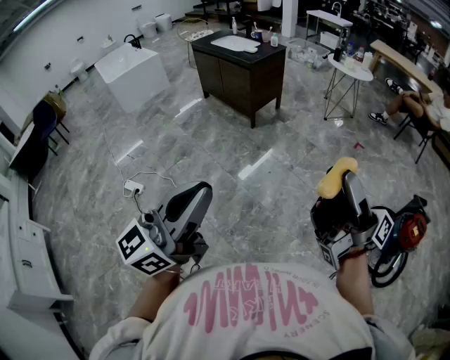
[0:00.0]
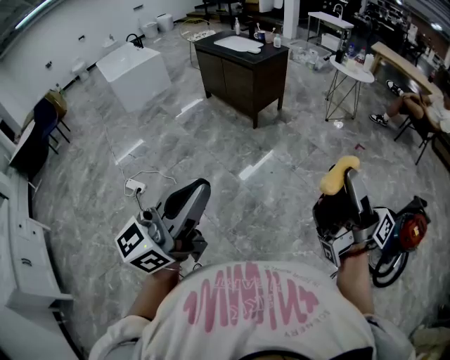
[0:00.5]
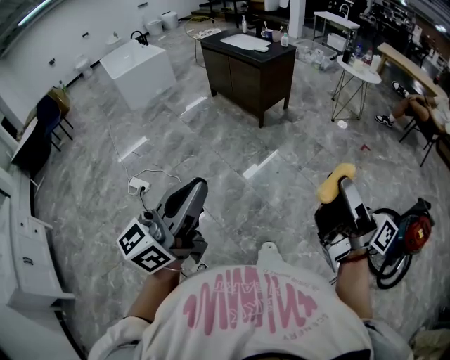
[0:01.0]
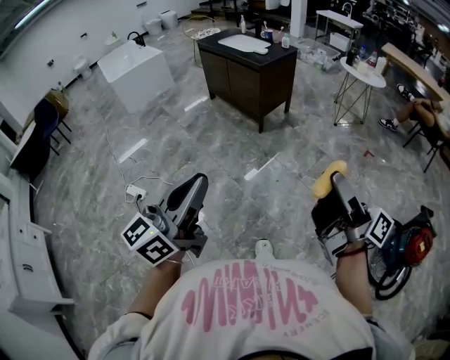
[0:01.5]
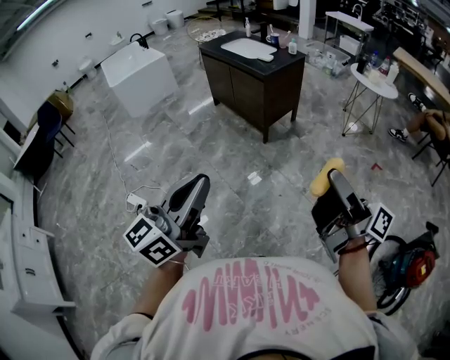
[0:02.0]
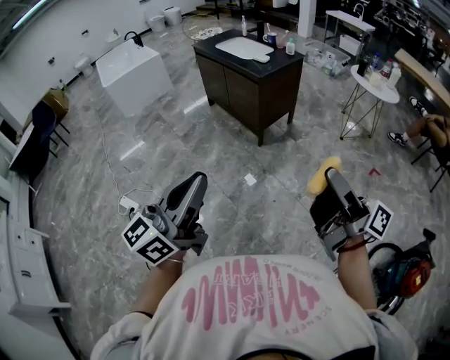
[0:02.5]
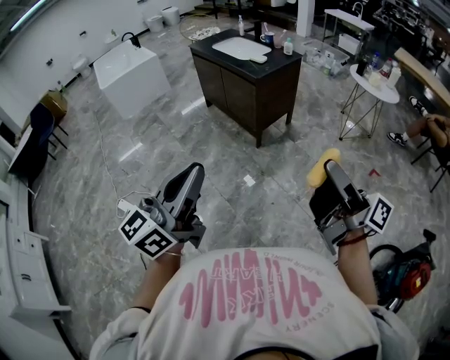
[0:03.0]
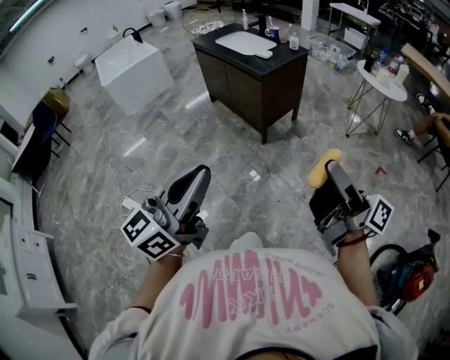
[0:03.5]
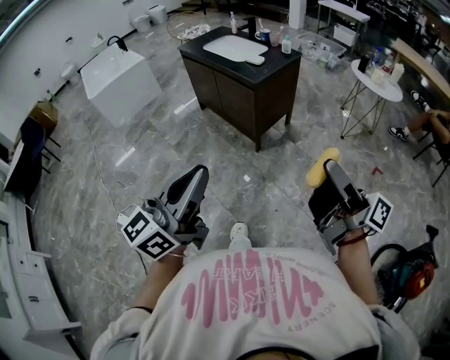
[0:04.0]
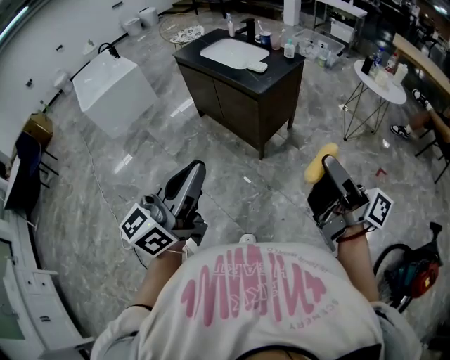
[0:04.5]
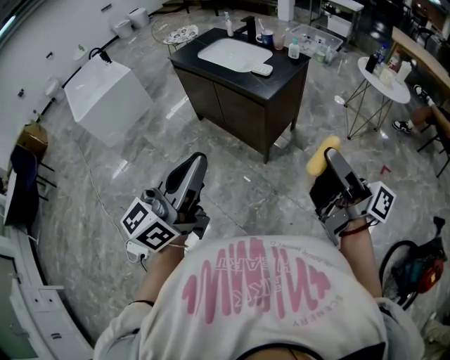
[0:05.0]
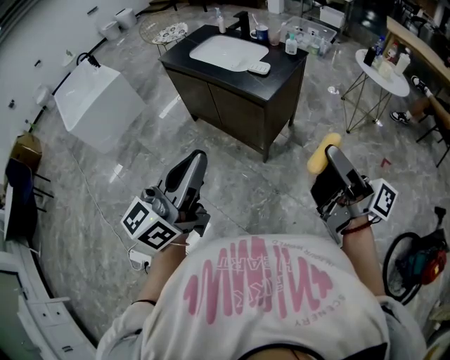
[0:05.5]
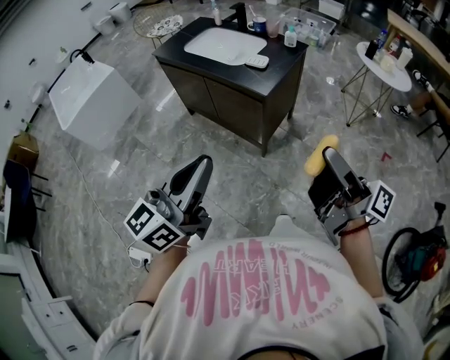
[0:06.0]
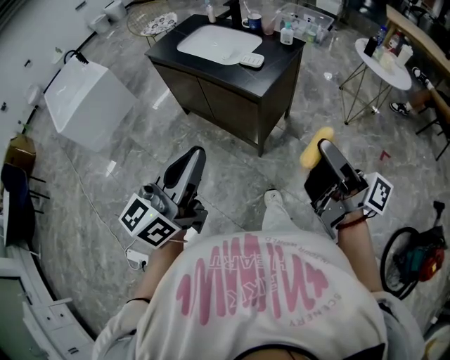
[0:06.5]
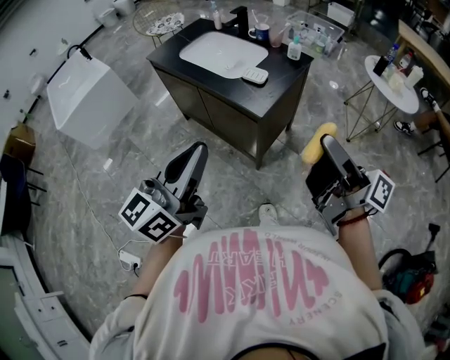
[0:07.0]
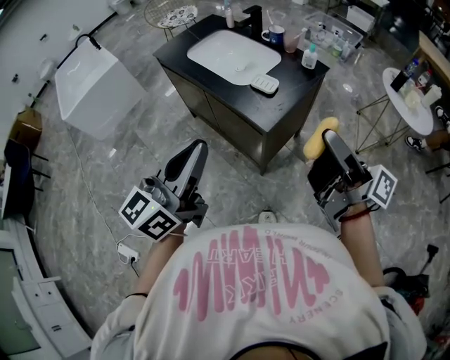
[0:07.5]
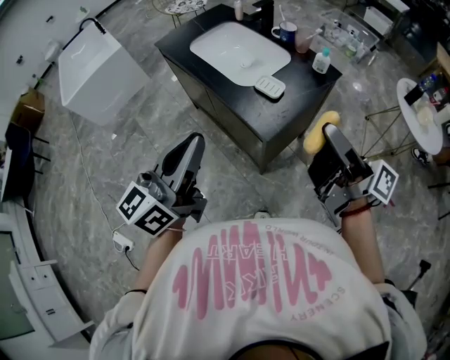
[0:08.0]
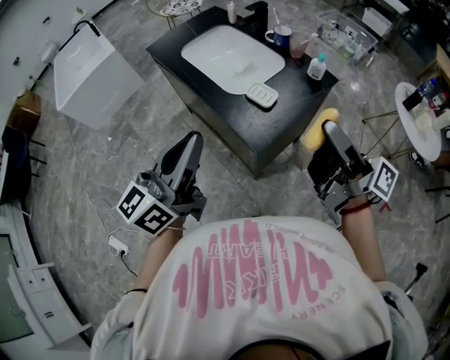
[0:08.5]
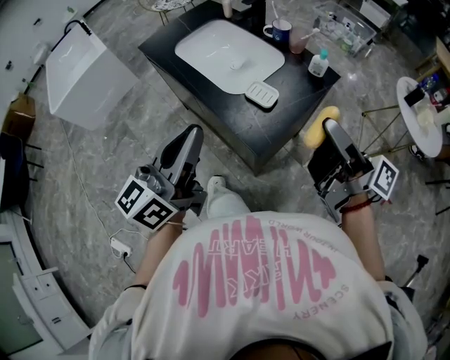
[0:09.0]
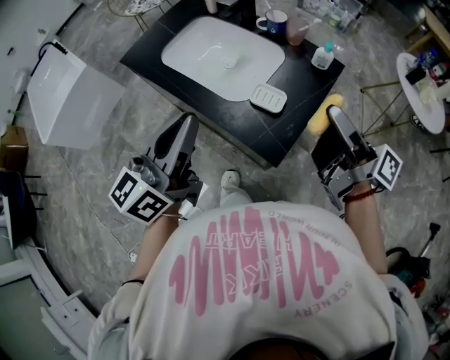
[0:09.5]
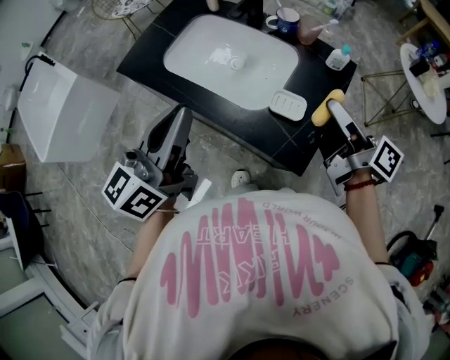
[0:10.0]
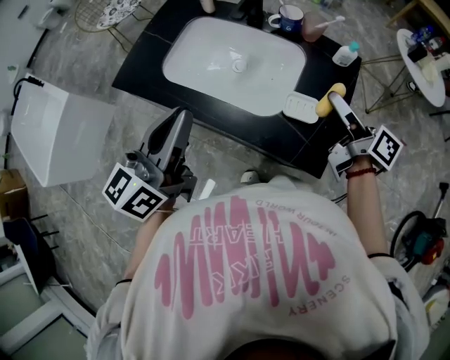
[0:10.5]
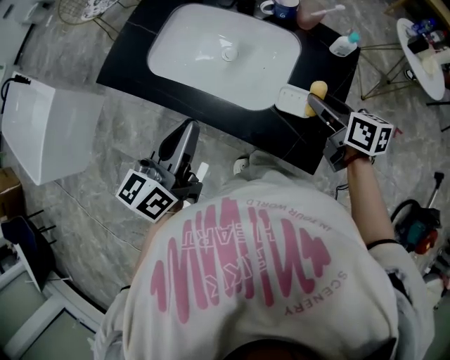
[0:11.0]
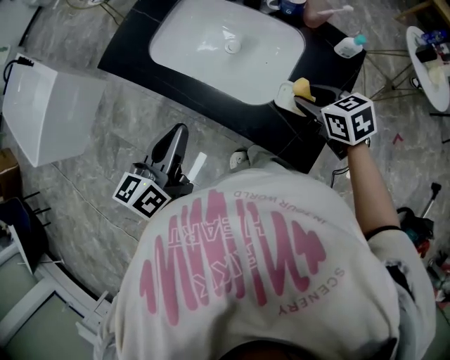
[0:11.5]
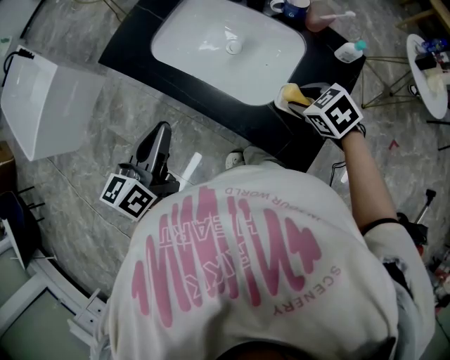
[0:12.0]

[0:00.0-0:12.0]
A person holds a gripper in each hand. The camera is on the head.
0:00.0 to 0:02.0: The grippers both shift forward by roughly 25 cm.
0:02.0 to 0:04.0: Both grippers travel together forward, some 20 cm.
0:04.0 to 0:06.0: The left gripper is displaced forward by about 25 cm. The right gripper is displaced forward and to the left by some 25 cm.
0:06.0 to 0:08.0: The grippers both shift forward by some 30 cm.
0:08.0 to 0:10.0: The left gripper heads forward, covering about 25 cm; the right gripper goes approximately 20 cm forward and downward, and swivels some 30 degrees.
0:10.0 to 0:12.0: Both grippers move downward and to the left, about 15 cm. The left gripper rotates some 20 degrees. Meanwhile the right gripper tilts its fingers about 60 degrees downward.

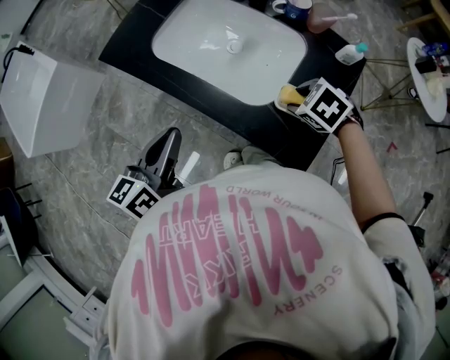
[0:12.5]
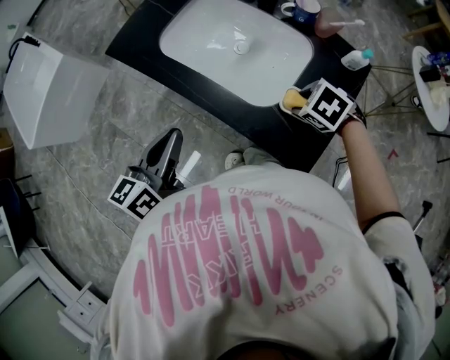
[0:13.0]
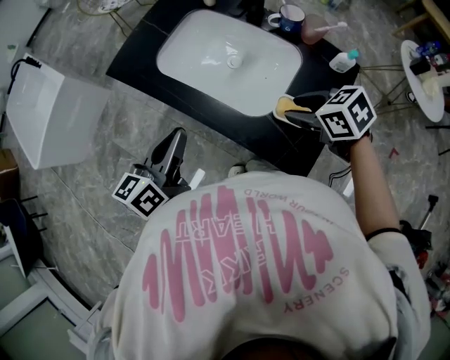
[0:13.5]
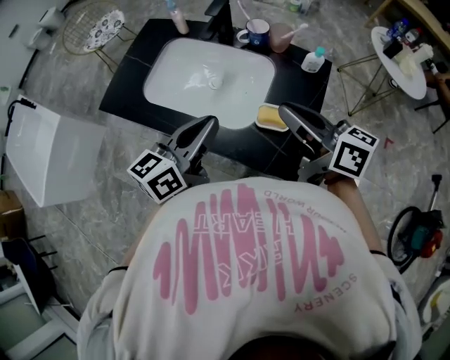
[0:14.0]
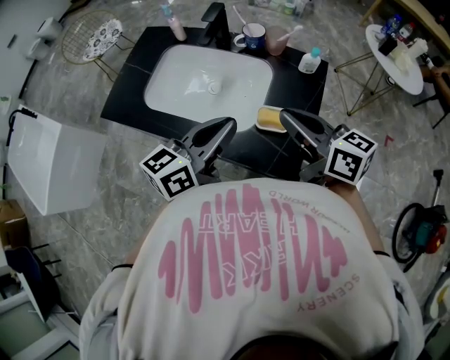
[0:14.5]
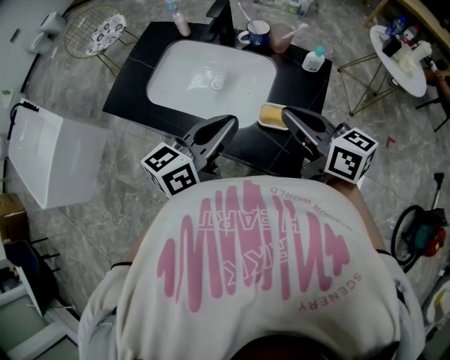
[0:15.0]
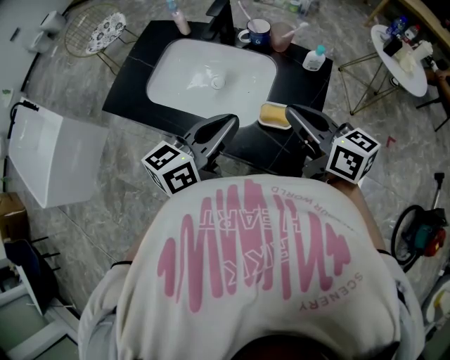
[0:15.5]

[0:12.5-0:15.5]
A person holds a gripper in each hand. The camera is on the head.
0:12.5 to 0:14.0: The left gripper shifts by roughly 15 cm, and turns by some 30 degrees; the right gripper goes roughly 20 cm upward, tips its fingers upward by about 70 degrees, and closes.
0:14.0 to 0:15.5: The grippers stay close to where they were, moving slightly.

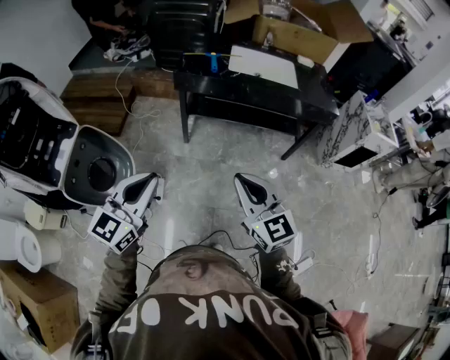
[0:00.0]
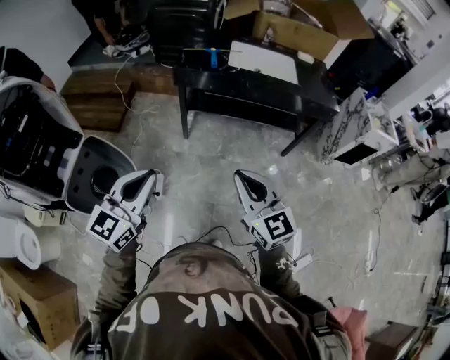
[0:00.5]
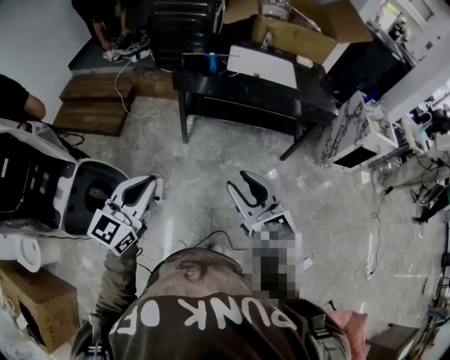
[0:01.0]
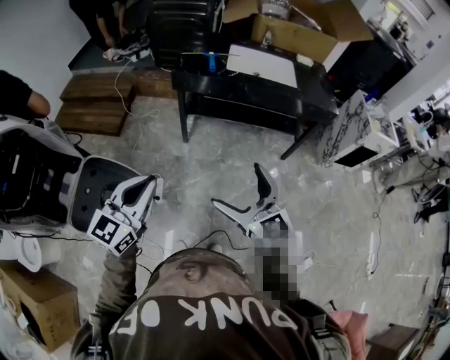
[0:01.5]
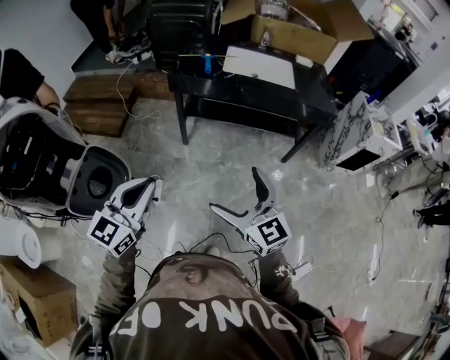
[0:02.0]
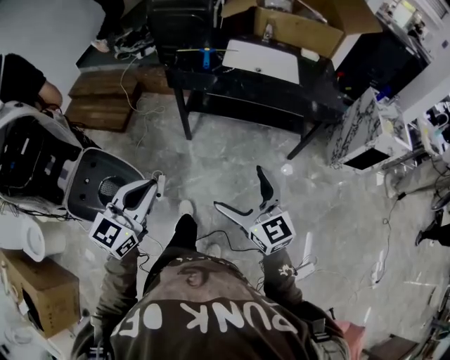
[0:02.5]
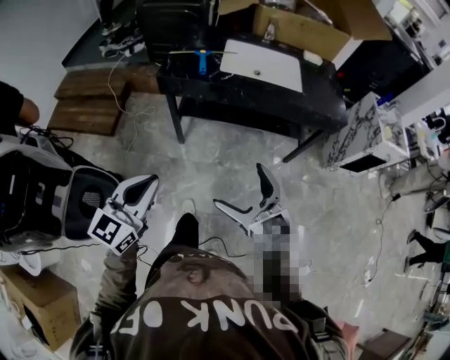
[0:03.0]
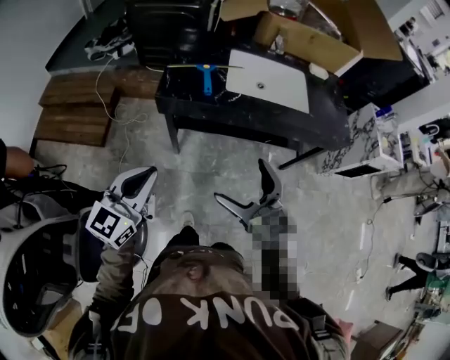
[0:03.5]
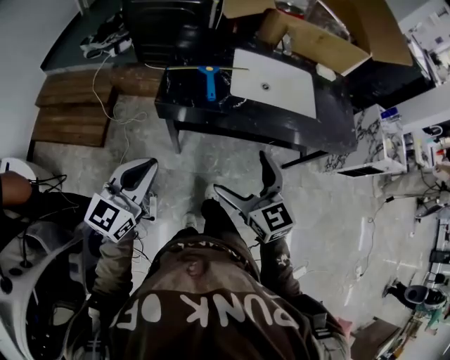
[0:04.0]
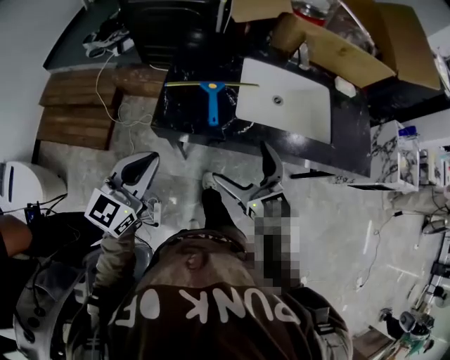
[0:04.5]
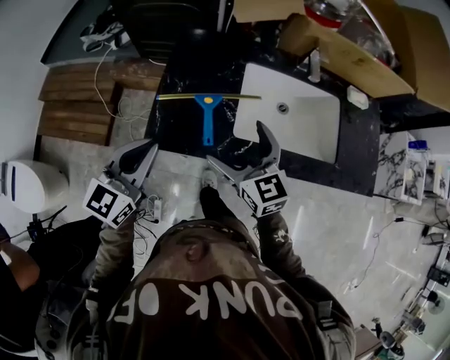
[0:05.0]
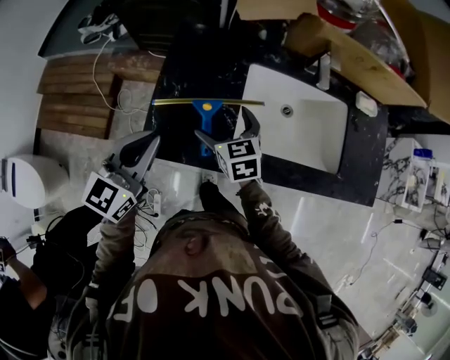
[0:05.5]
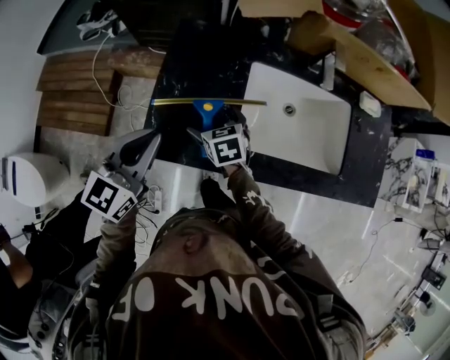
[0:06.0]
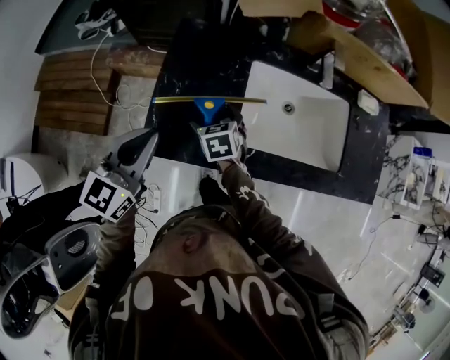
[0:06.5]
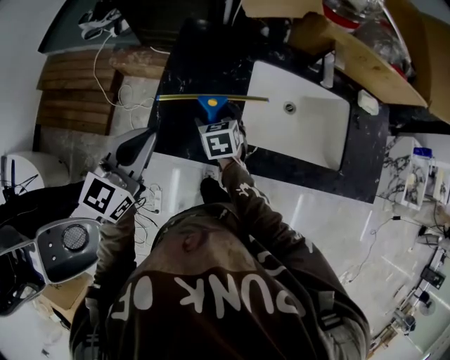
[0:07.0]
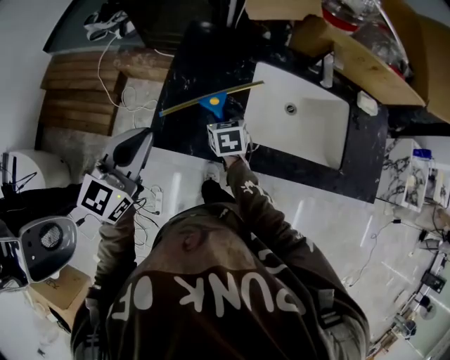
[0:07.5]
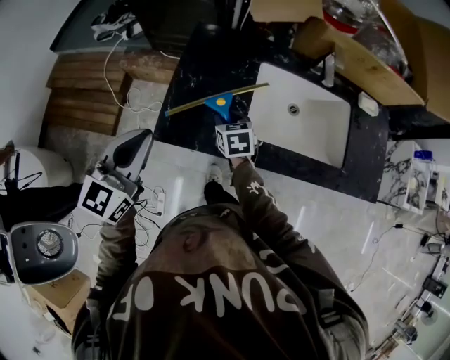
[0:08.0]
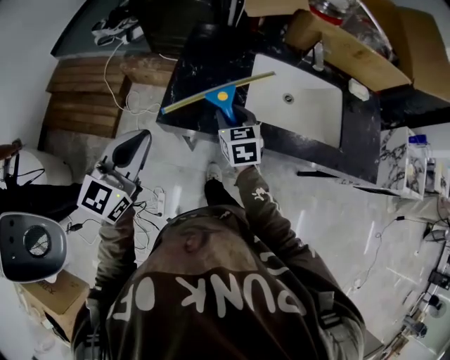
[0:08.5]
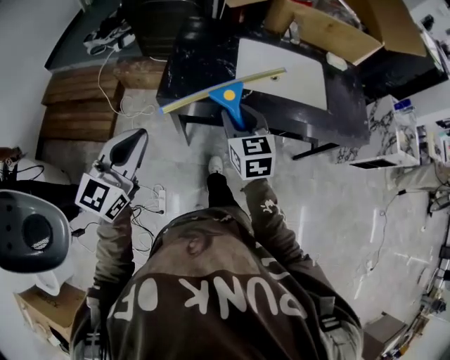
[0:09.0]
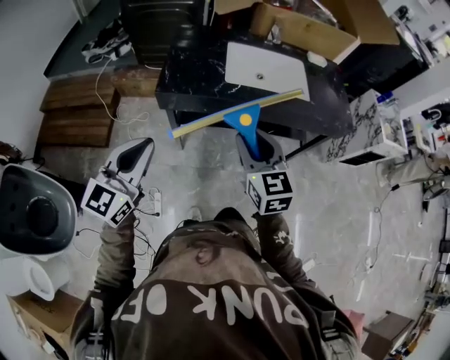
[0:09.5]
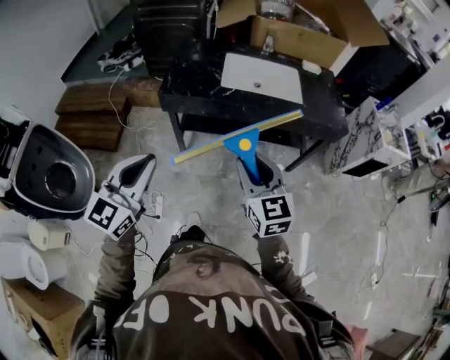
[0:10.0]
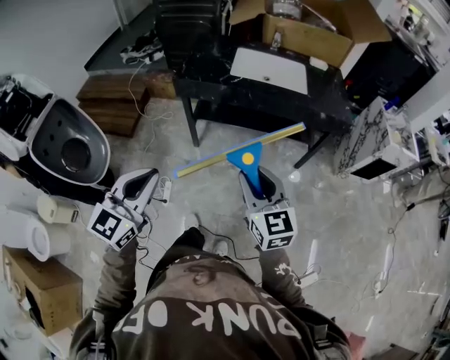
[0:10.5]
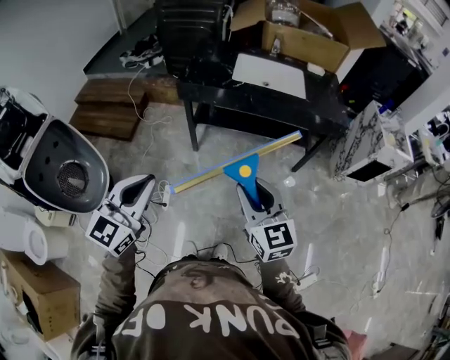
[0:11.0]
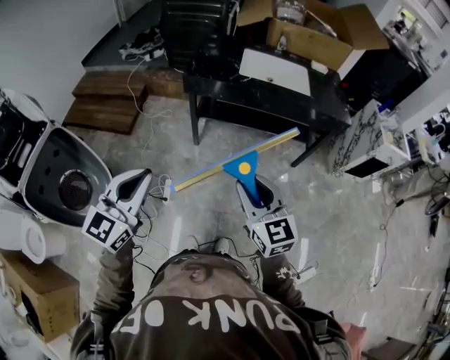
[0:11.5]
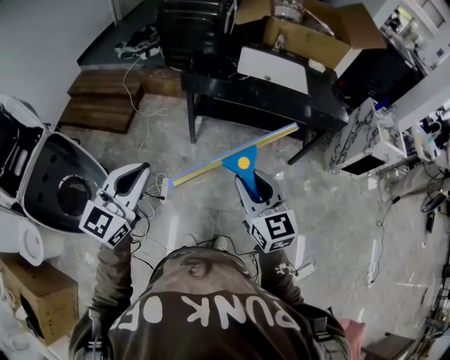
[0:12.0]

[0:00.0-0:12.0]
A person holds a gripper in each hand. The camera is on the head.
0:00.0 to 0:02.0: The right gripper opens.
0:02.0 to 0:04.0: The grippers both shift forward by approximately 40 cm.
0:04.0 to 0:06.0: The right gripper is displaced forward and downward by roughly 50 cm, and points its fingers about 30 degrees further downward; the left gripper heads forward, covering approximately 35 cm.
0:06.0 to 0:08.0: The right gripper closes up. Meanwhile the left gripper shifts about 5 cm backward.
0:08.0 to 0:10.0: Both grippers are carried backward, approximately 50 cm. The right gripper is displaced upward by some 25 cm, and points its fingers approximately 30 degrees further upward.
0:10.0 to 0:12.0: The two grippers go some 20 cm backward.
